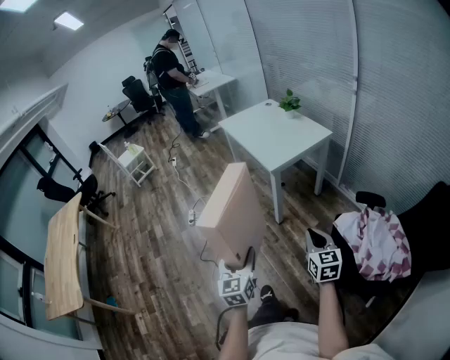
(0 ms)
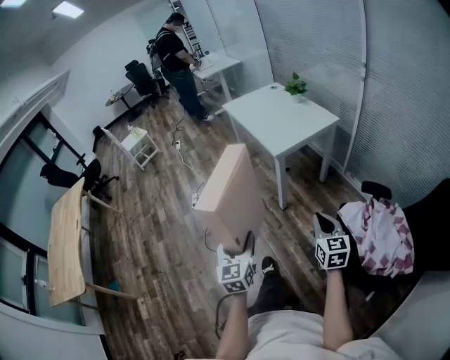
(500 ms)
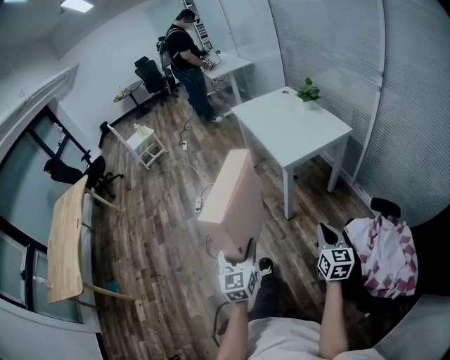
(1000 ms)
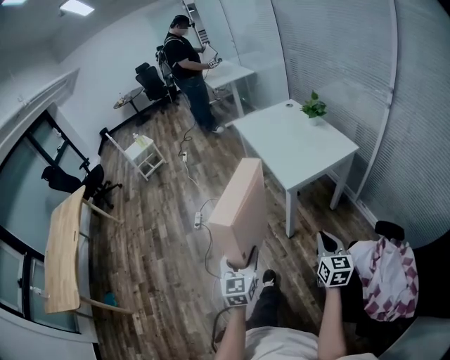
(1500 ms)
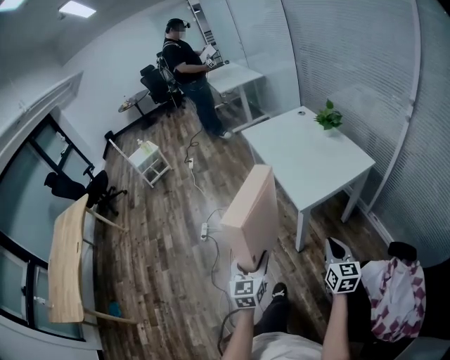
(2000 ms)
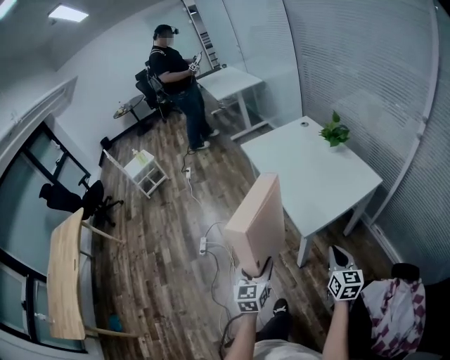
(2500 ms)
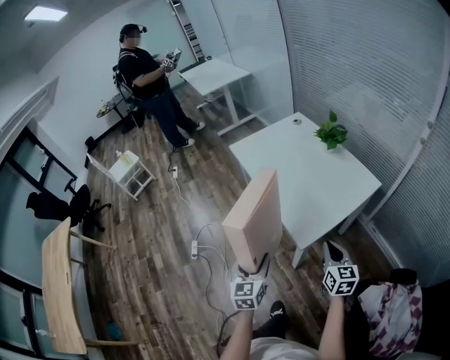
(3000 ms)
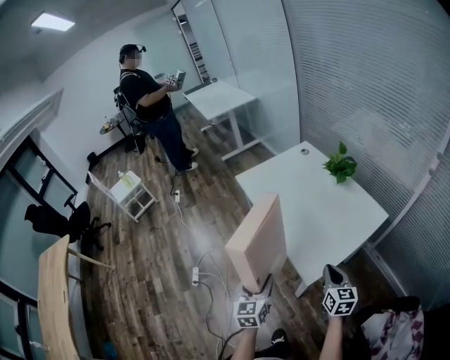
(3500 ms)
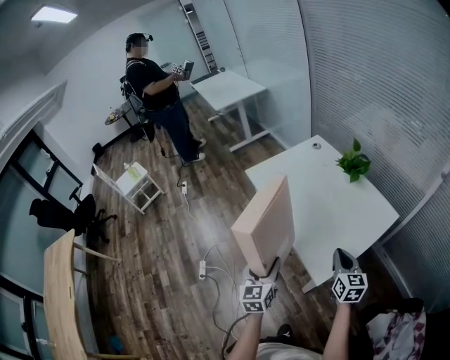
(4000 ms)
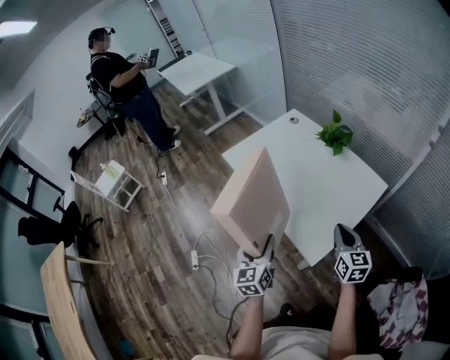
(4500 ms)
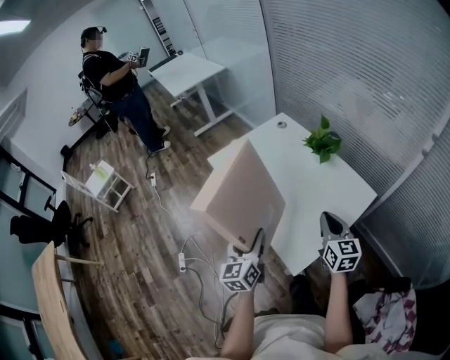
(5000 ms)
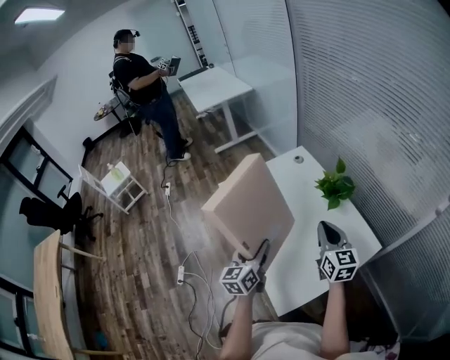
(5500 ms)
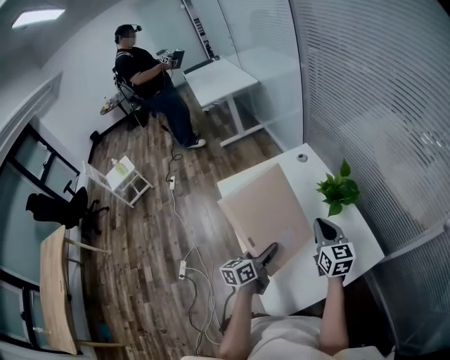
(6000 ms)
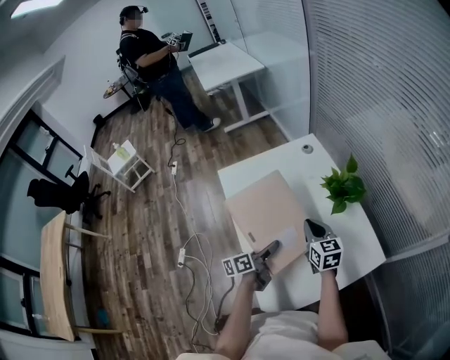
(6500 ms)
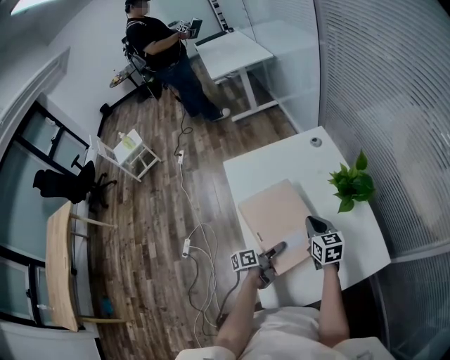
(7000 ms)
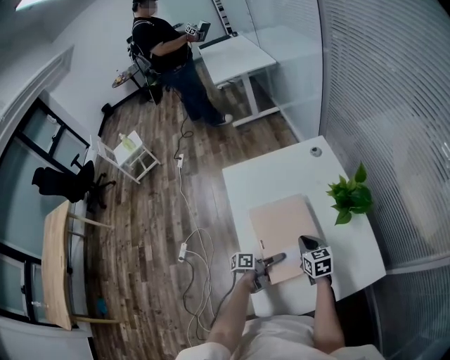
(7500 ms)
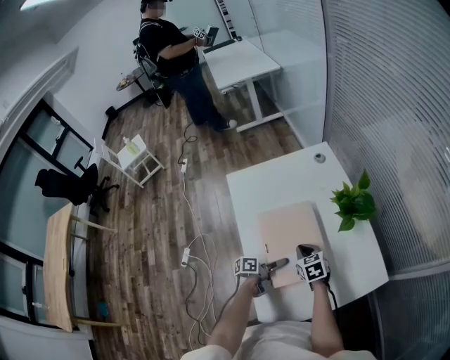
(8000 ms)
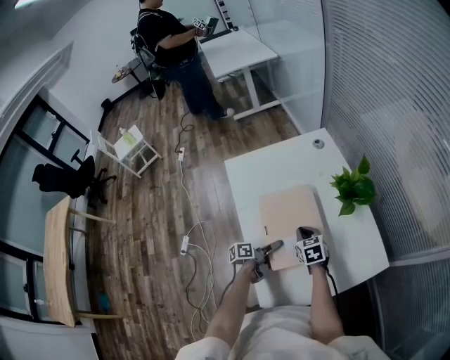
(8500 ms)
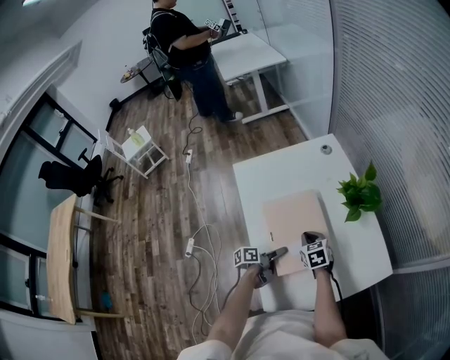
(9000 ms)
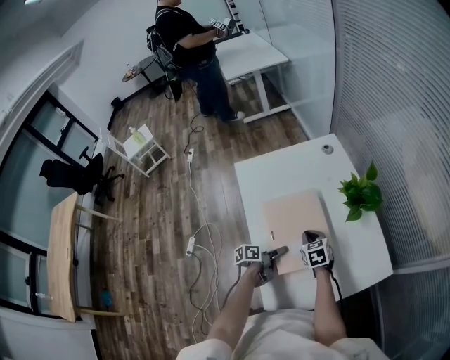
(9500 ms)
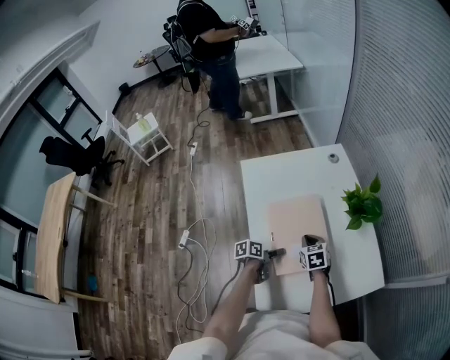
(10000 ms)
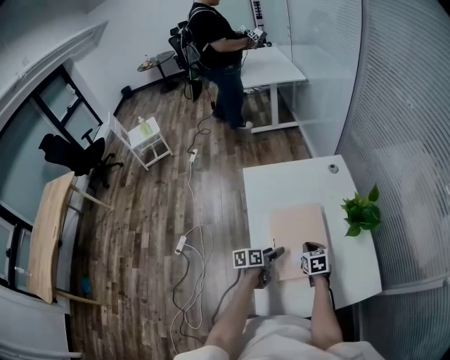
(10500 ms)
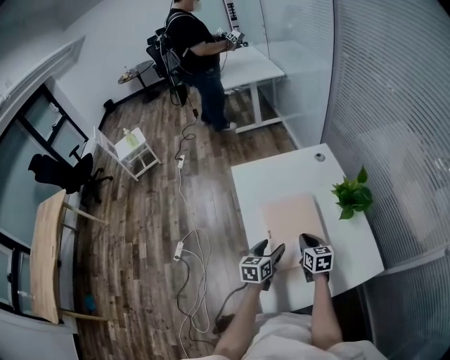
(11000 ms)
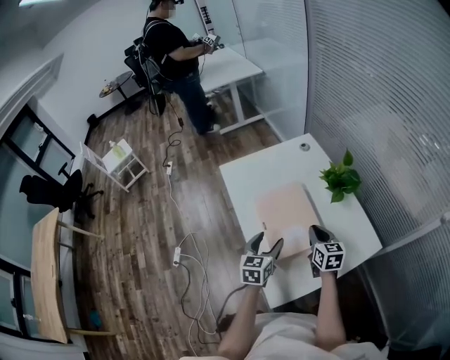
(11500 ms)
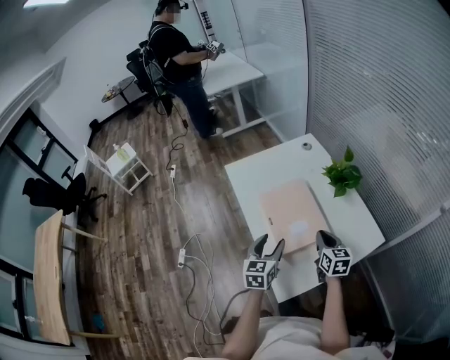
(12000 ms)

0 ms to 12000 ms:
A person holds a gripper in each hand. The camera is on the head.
0 ms to 2000 ms: The two grippers go approximately 30 cm forward.
2000 ms to 4000 ms: Both grippers move forward, about 35 cm.
4000 ms to 6000 ms: The left gripper heads forward and to the right, covering roughly 30 cm, and swivels about 30 degrees. Meanwhile the right gripper goes roughly 30 cm forward.
6000 ms to 8000 ms: The grippers both shift downward by about 20 cm. The right gripper angles its fingers downward, by approximately 30 degrees. The left gripper twists approximately 40 degrees counterclockwise, seen from behind.
8000 ms to 10000 ms: The left gripper moves to the left, some 5 cm, and rotates some 20 degrees.
10000 ms to 12000 ms: The right gripper is displaced backward, upward and to the right by about 20 cm, and changes its angle by some 30 degrees. Meanwhile the left gripper is displaced upward by about 20 cm, and twists roughly 50 degrees clockwise, seen from behind.

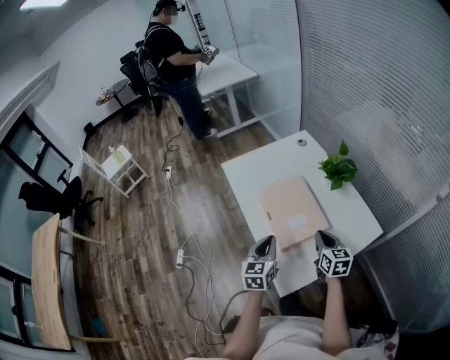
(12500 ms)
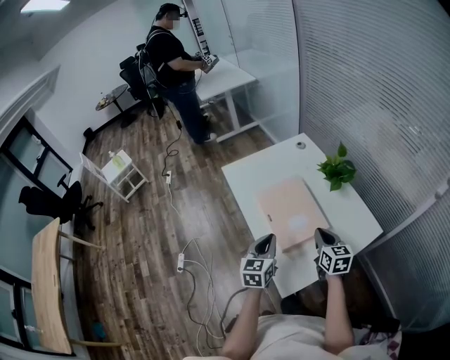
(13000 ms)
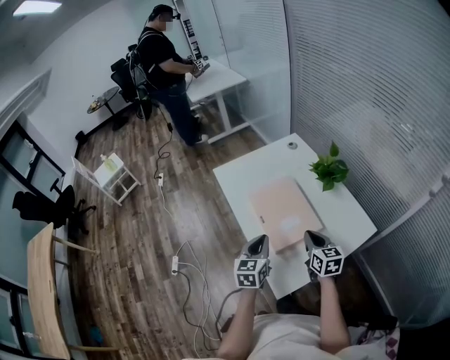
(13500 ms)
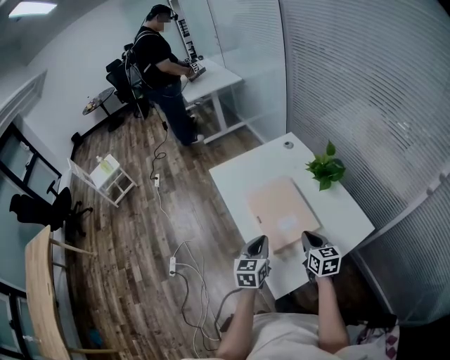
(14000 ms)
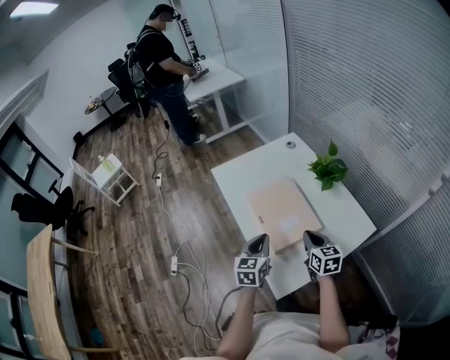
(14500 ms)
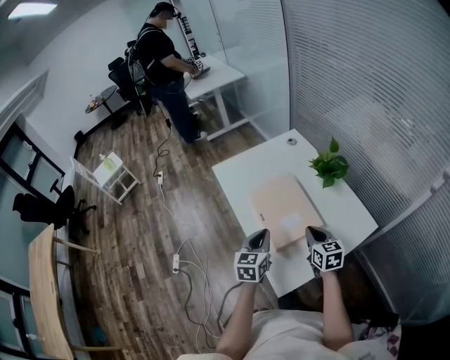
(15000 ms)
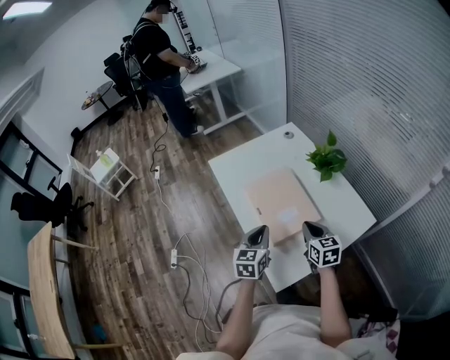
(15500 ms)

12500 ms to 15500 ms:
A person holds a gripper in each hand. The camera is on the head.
12500 ms to 14000 ms: The grippers make only small movements.
14000 ms to 15500 ms: Both grippers stay about where they are.

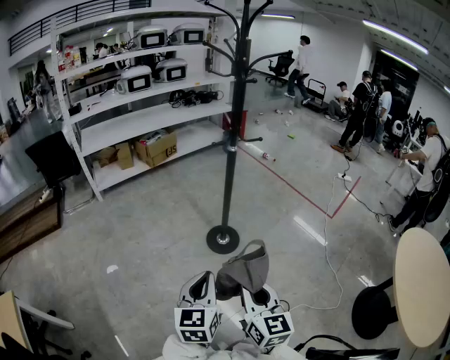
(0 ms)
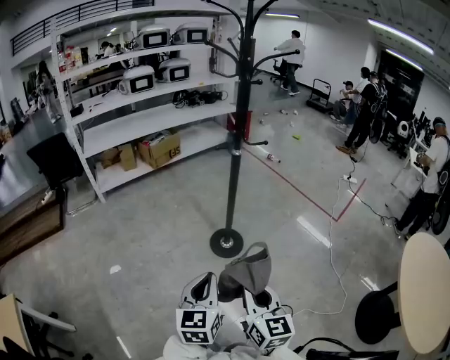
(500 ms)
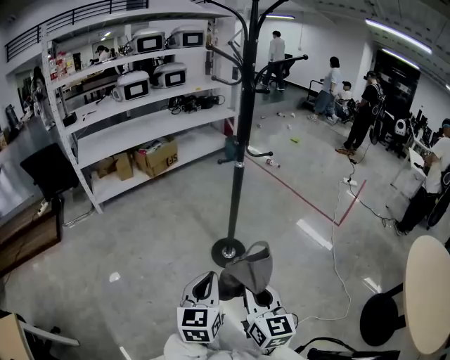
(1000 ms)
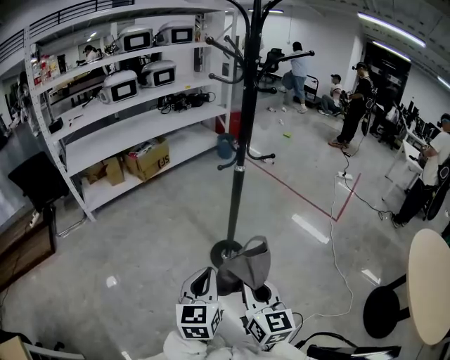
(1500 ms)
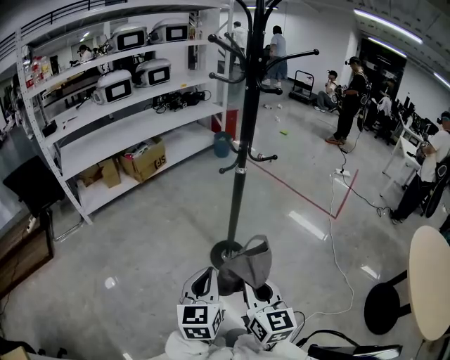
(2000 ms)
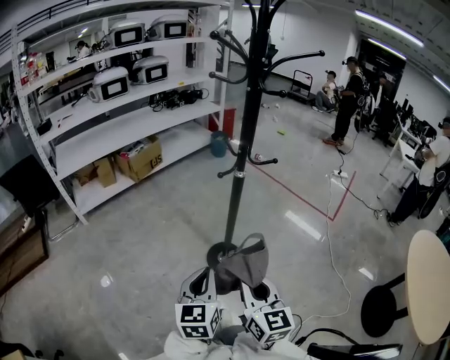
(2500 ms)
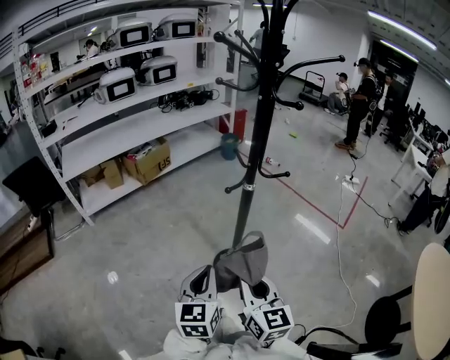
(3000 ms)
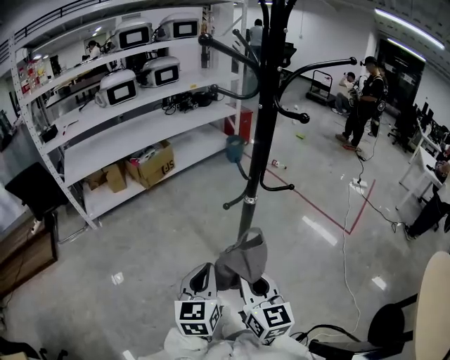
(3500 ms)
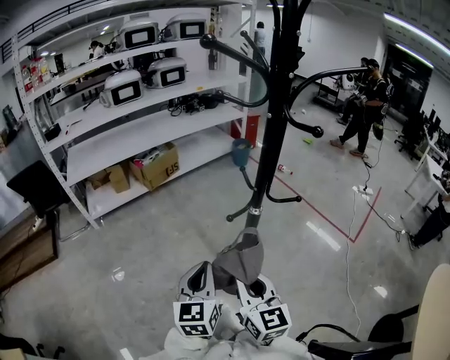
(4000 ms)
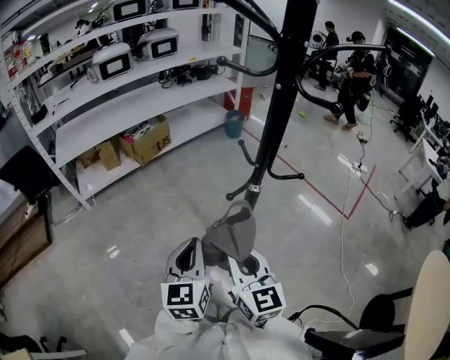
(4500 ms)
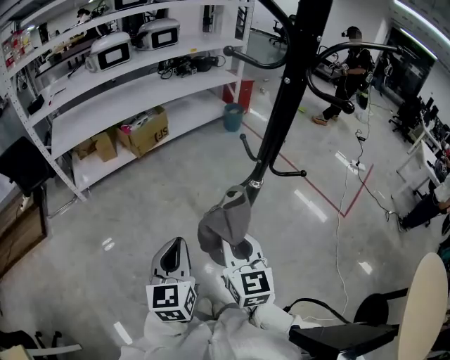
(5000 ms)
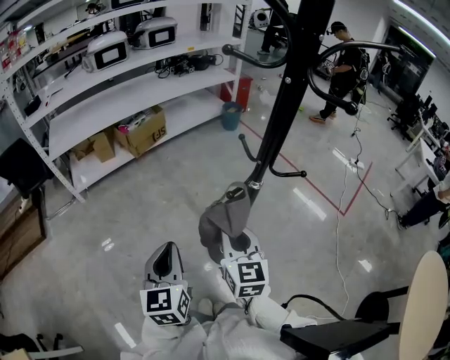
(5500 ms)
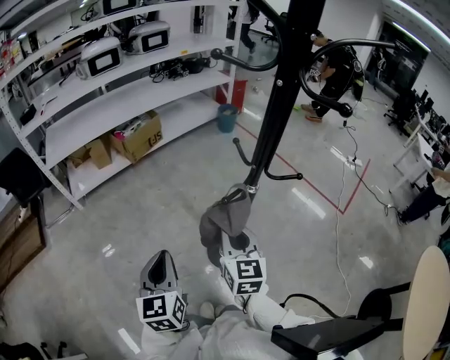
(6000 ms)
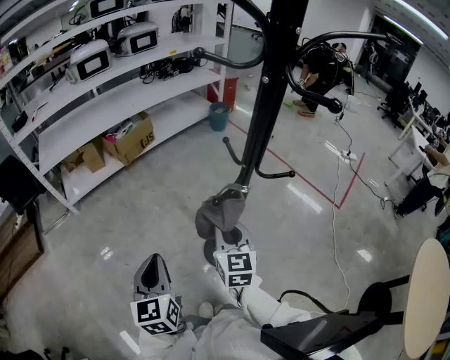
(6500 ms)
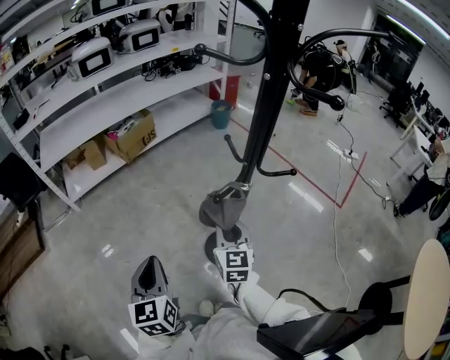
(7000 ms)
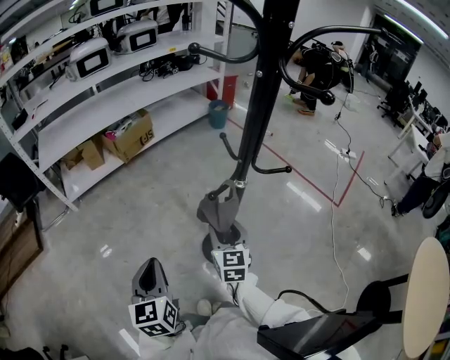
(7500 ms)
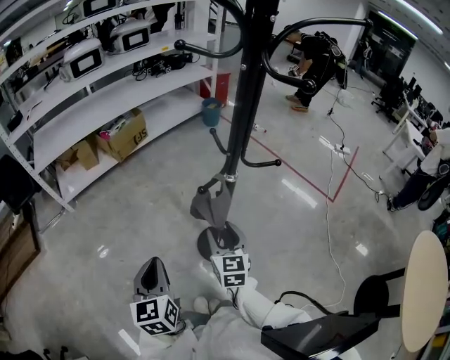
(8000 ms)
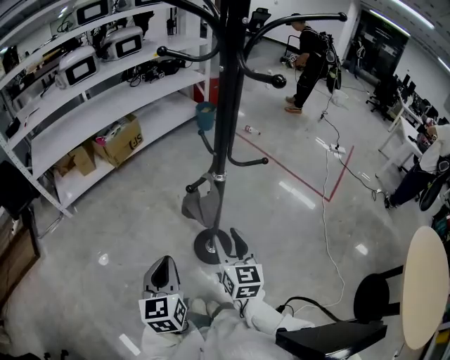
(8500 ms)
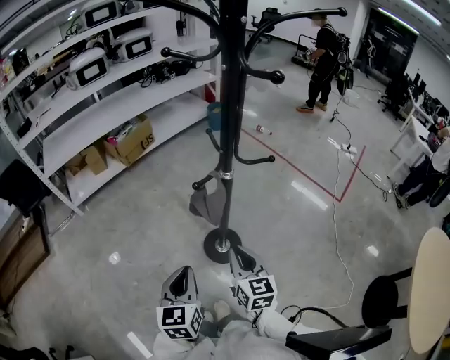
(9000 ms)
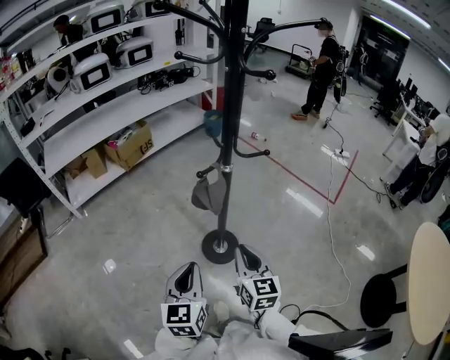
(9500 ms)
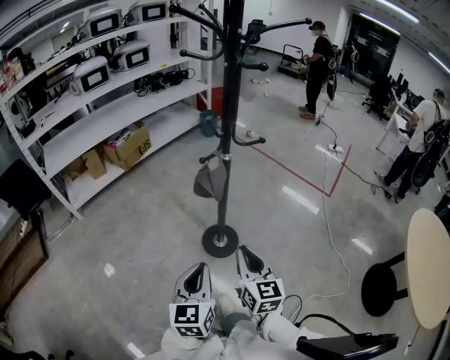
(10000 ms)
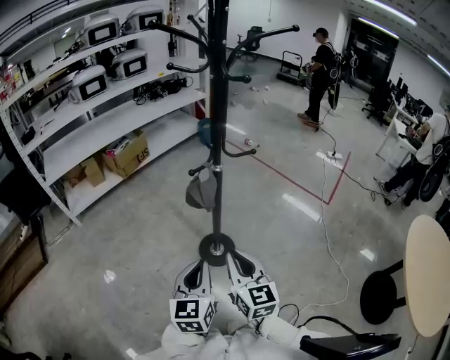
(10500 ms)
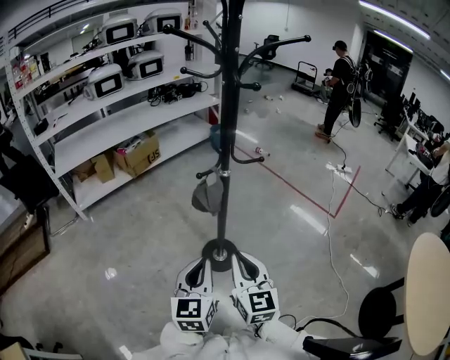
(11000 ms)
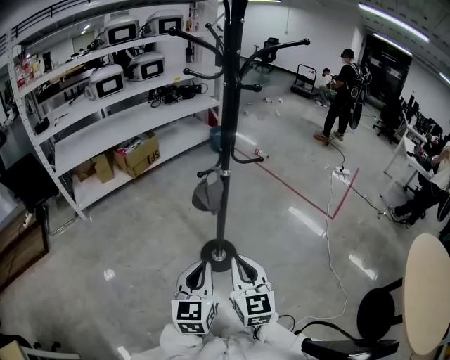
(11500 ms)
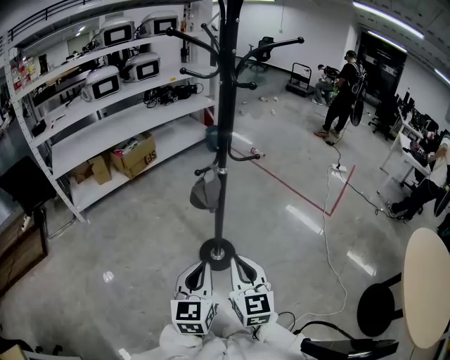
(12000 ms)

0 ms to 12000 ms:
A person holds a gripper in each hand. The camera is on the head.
0 ms to 2000 ms: The grippers both shift forward by some 20 cm.
2000 ms to 4000 ms: The grippers both shift forward by about 20 cm.
4000 ms to 6000 ms: The right gripper goes approximately 10 cm forward. The left gripper moves to the left, about 10 cm.
6000 ms to 8000 ms: The right gripper shifts roughly 10 cm downward, and opens its fingers.
8000 ms to 10000 ms: The right gripper is displaced backward by some 20 cm, and closes. Meanwhile the left gripper moves backward and to the right, approximately 20 cm.
